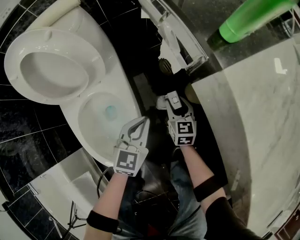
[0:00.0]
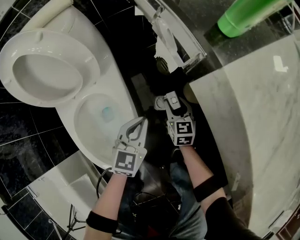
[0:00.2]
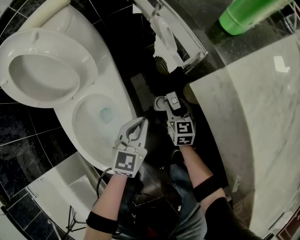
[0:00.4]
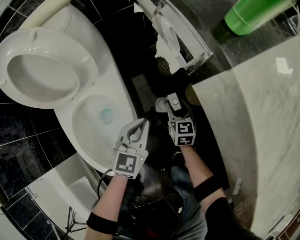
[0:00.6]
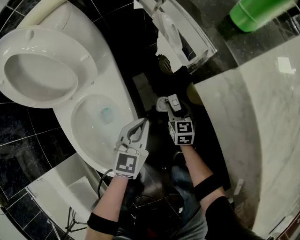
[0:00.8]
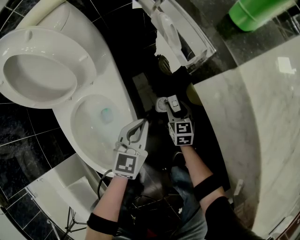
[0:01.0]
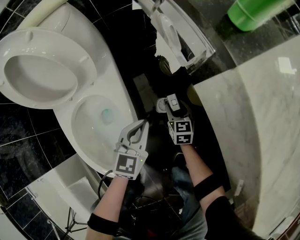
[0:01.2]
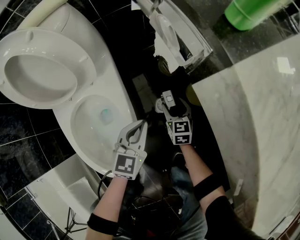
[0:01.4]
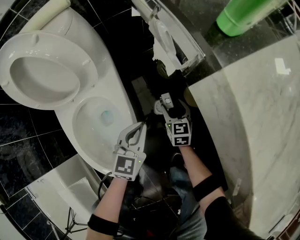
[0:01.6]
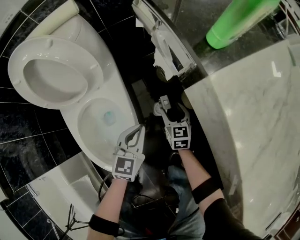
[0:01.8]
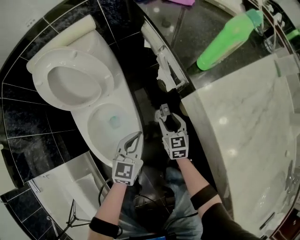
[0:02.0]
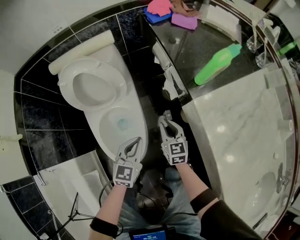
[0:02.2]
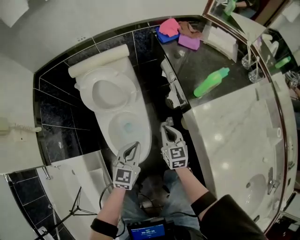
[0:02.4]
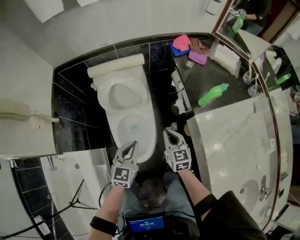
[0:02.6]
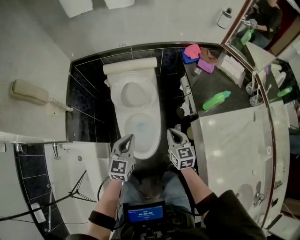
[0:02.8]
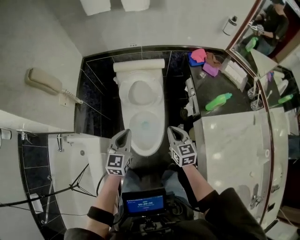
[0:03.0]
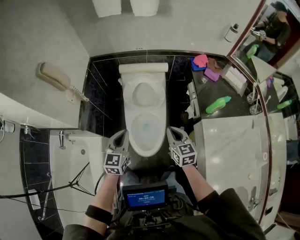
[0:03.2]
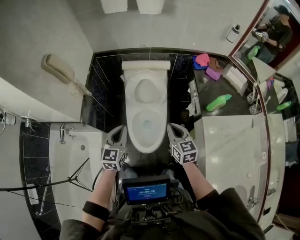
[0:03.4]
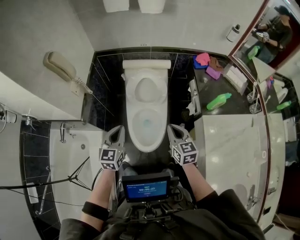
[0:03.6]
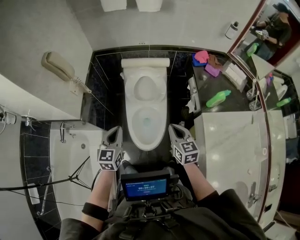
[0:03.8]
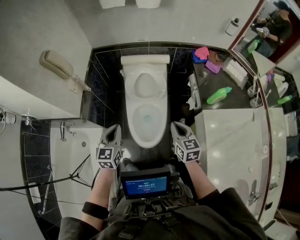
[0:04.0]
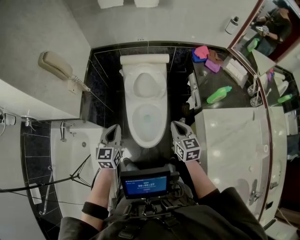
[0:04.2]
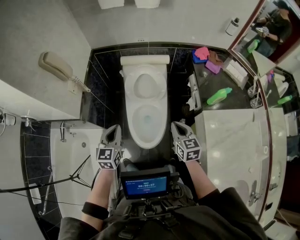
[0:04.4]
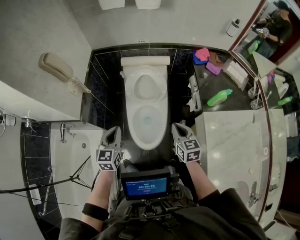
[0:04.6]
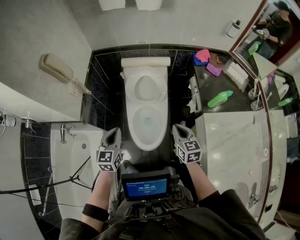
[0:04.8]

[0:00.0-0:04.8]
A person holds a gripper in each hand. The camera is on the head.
0:00.0 to 0:01.6: The right gripper heads downward, covering some 5 cm.
0:01.6 to 0:03.2: The grippers both shift upward by about 60 cm. The right gripper rotates some 30 degrees, and closes. The left gripper rotates roughly 30 degrees.
0:03.2 to 0:04.8: The left gripper goes some 5 cm to the left.

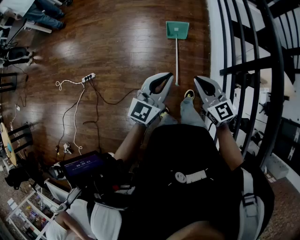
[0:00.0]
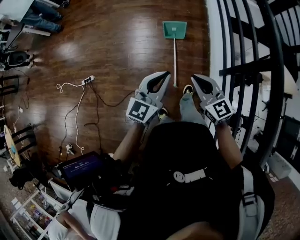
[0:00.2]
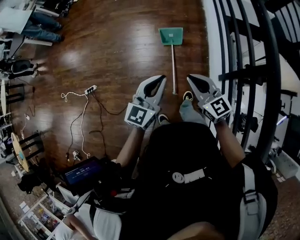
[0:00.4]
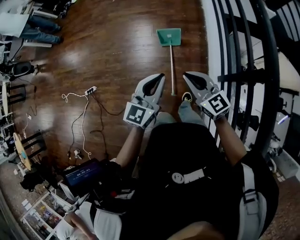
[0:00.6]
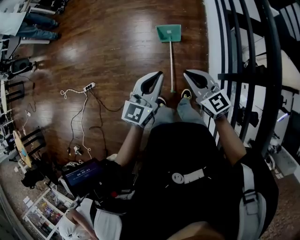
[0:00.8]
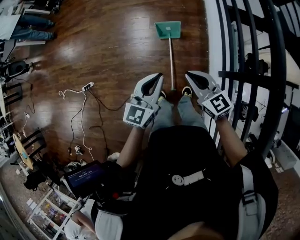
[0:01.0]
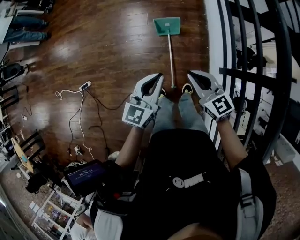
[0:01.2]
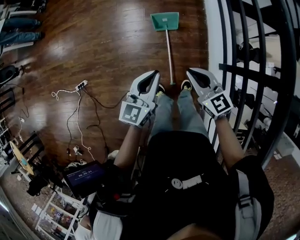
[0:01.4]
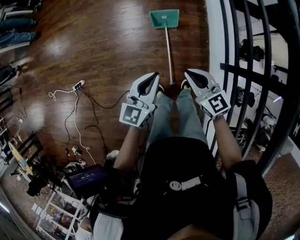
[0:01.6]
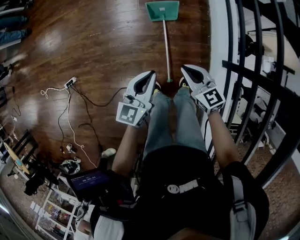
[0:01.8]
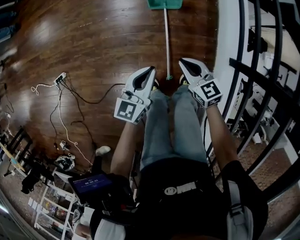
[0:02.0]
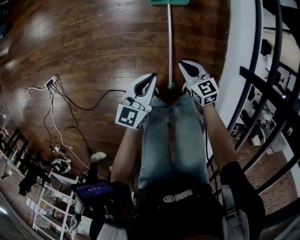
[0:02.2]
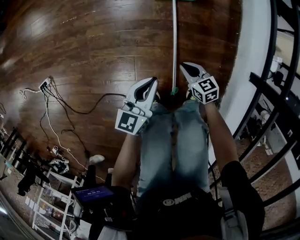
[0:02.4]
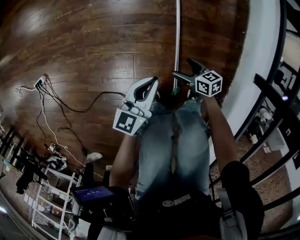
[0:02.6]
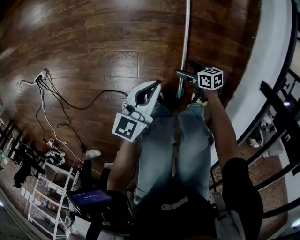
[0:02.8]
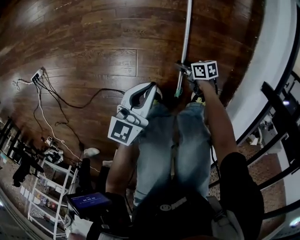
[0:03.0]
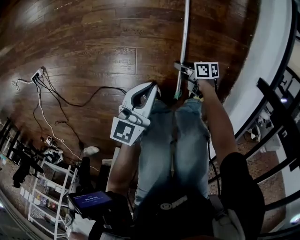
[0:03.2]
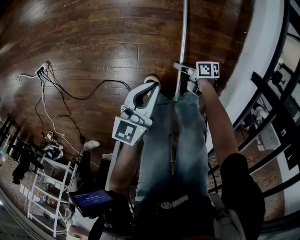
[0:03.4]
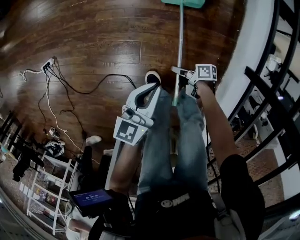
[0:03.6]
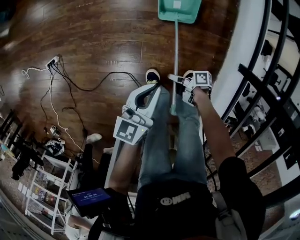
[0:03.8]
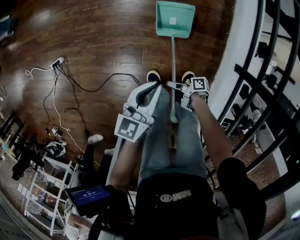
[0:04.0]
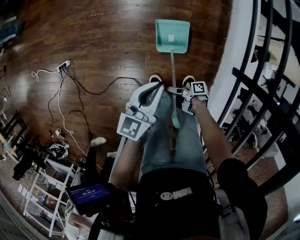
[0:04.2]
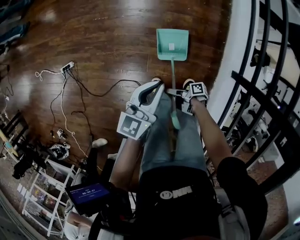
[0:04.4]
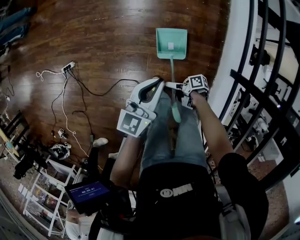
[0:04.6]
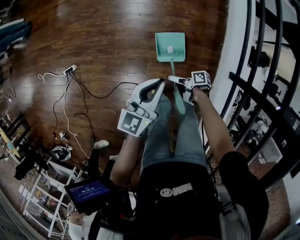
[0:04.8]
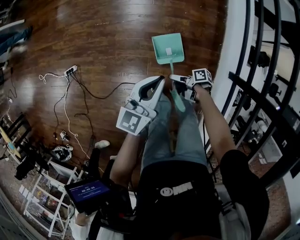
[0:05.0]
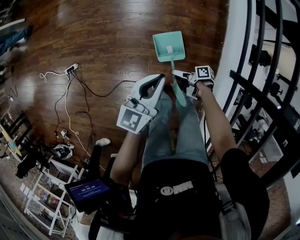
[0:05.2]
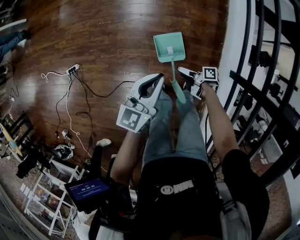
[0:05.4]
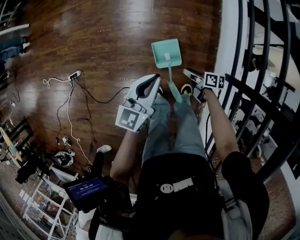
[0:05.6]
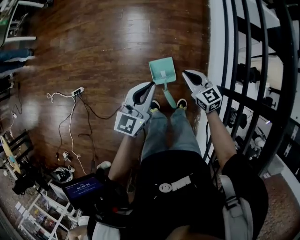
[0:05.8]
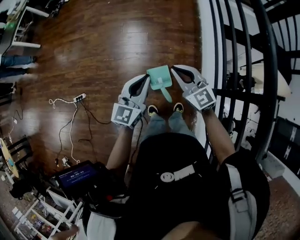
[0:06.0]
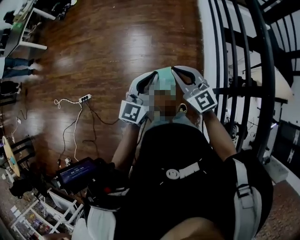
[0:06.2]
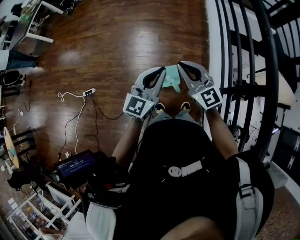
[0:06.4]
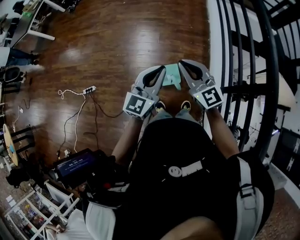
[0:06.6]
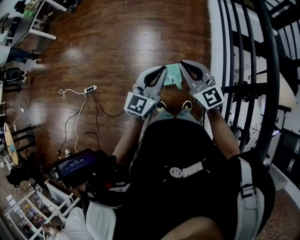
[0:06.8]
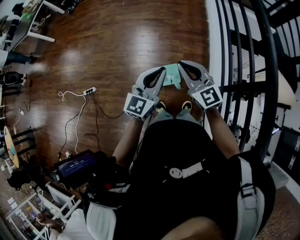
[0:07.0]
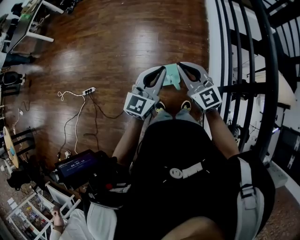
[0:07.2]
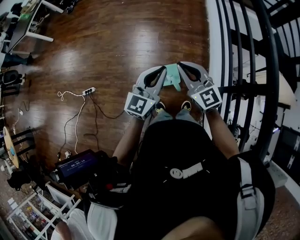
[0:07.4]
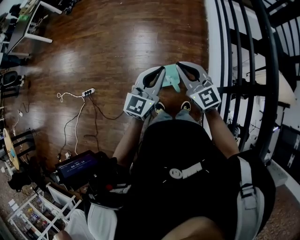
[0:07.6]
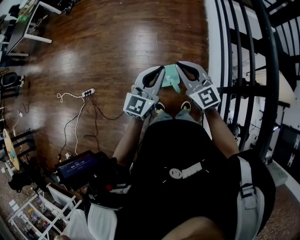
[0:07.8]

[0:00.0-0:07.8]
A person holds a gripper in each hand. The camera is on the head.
0:00.0 to 0:01.6: Both grippers move forward and downward, about 30 cm.
0:01.6 to 0:03.2: The left gripper moves downward, about 40 cm. Meanwhile the right gripper goes about 70 cm downward, rotates around the line of its fingers by about 60 degrees, clockwise from behind, and opens and closes again.
0:03.2 to 0:04.6: The grippers both shift upward by about 30 cm. The right gripper rotates some 30 degrees, and opens up.
0:04.6 to 0:06.2: The right gripper moves upward, some 60 cm, rotates around the line of its fingers by about 110 degrees, counterclockwise from behind, and closes, while the left gripper travels upward by approximately 35 cm, and rotates about 30 degrees.
0:06.2 to 0:07.8: The left gripper moves approximately 5 cm.

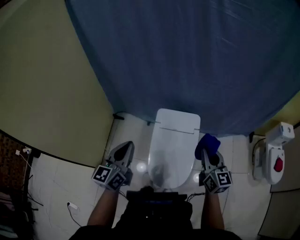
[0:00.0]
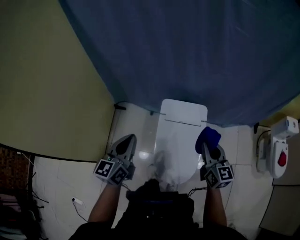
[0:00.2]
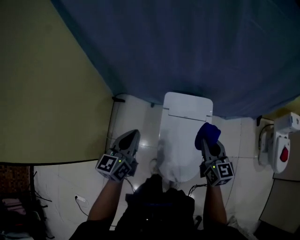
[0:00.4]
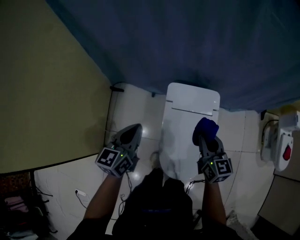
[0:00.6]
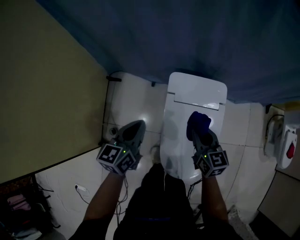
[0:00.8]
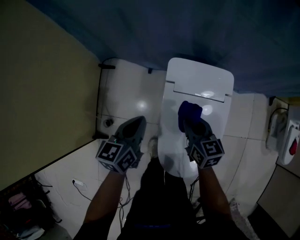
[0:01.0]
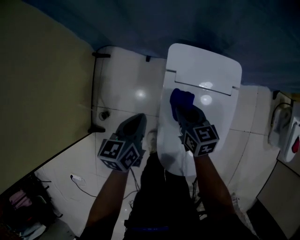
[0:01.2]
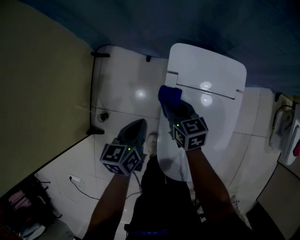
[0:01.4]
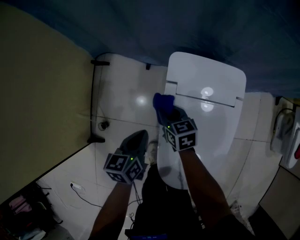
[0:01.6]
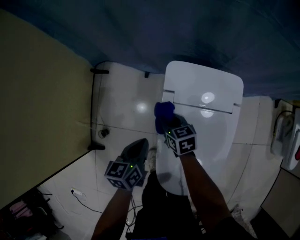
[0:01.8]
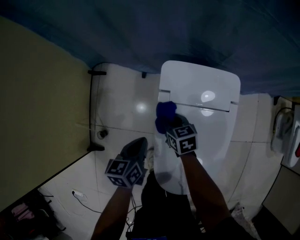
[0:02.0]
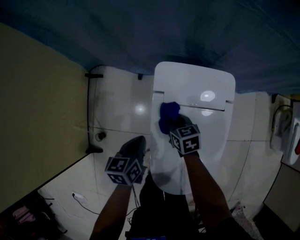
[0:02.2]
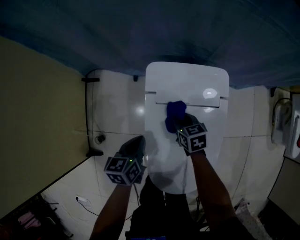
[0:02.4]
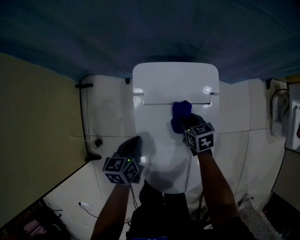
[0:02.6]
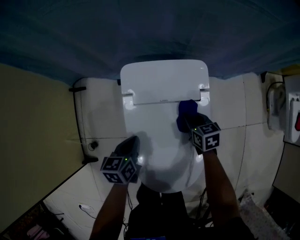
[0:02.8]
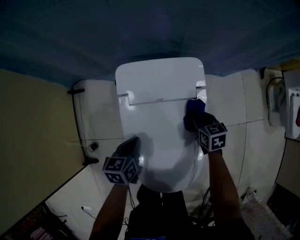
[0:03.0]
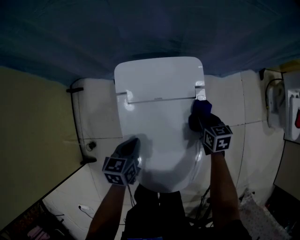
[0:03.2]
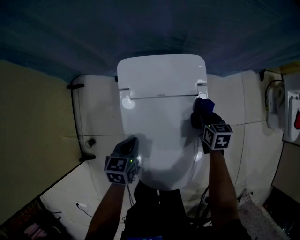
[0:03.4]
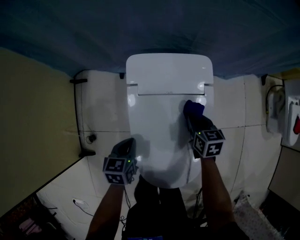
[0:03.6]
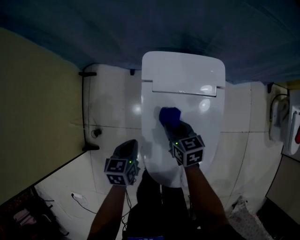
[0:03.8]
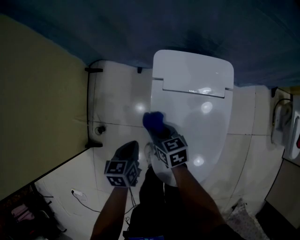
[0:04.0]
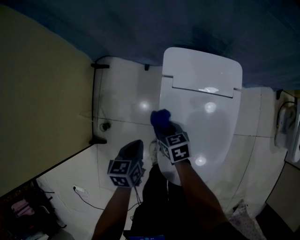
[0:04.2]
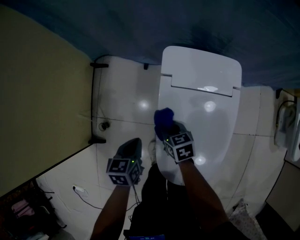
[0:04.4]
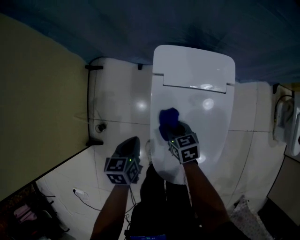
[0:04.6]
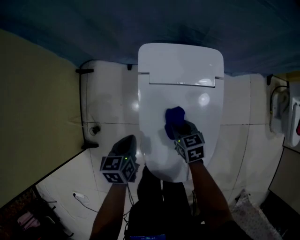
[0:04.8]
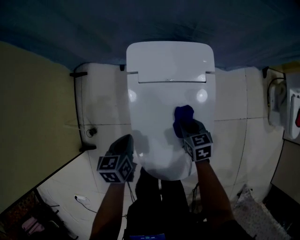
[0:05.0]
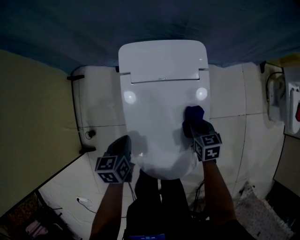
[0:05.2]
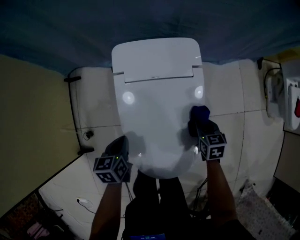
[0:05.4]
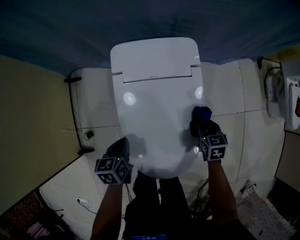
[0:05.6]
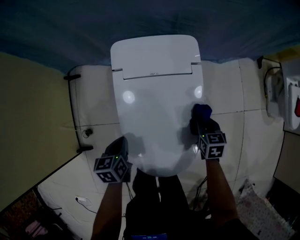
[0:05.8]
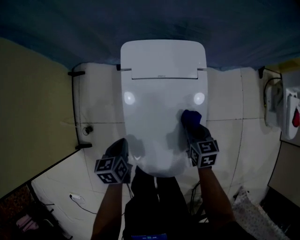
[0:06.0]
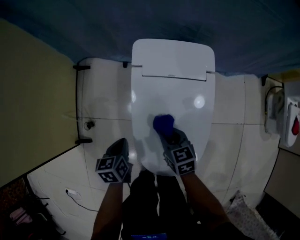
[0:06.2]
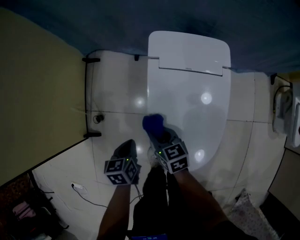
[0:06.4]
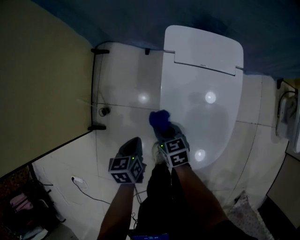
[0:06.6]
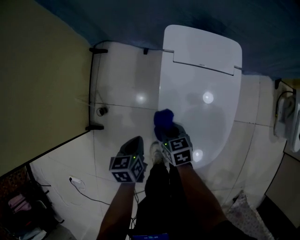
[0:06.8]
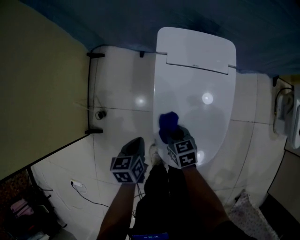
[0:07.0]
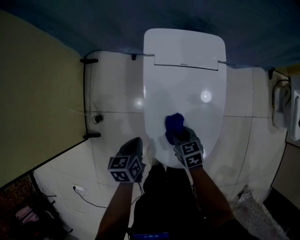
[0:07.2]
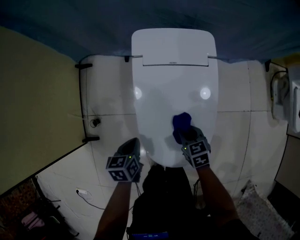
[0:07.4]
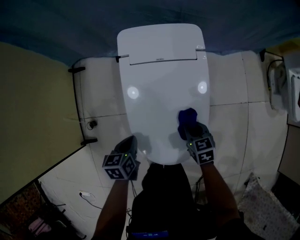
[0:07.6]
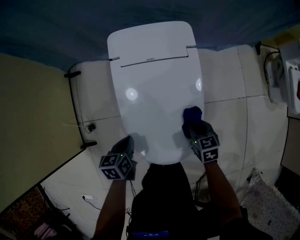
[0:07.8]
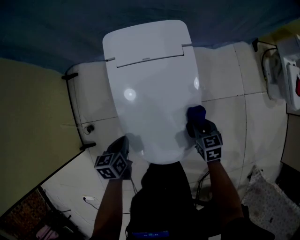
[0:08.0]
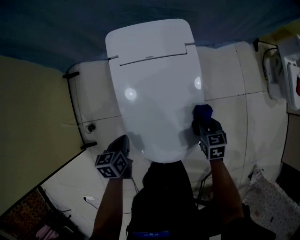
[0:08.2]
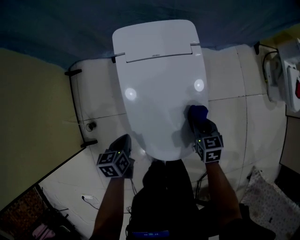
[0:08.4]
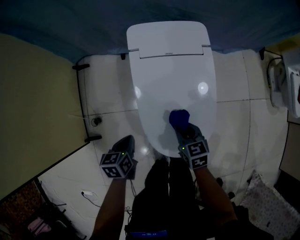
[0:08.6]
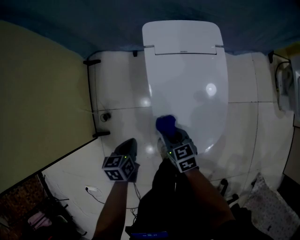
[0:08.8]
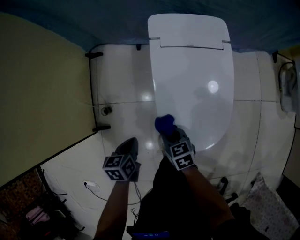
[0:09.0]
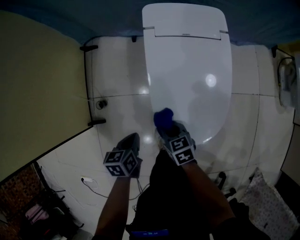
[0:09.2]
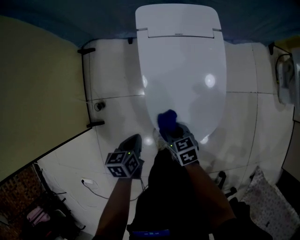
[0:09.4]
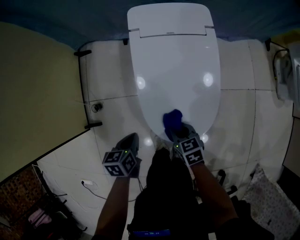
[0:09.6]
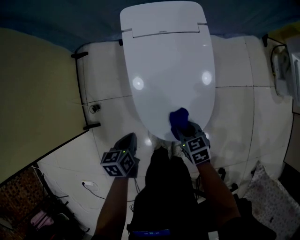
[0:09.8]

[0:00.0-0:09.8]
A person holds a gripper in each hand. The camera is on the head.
0:00.0 to 0:01.4: The right gripper heads downward, to the left and forward, covering approximately 60 cm, and swivels roughly 30 degrees; the left gripper moves downward and forward, approximately 50 cm, and points its fingers approximately 30 degrees further downward.
0:01.4 to 0:02.8: The left gripper shifts roughly 10 cm to the right; the right gripper heads to the right, covering approximately 25 cm.
0:02.8 to 0:04.2: The right gripper moves roughly 30 cm. Meanwhile the left gripper shifts by some 15 cm.
0:04.2 to 0:05.6: The left gripper shifts some 10 cm to the right. Meanwhile the right gripper travels to the right by about 35 cm, and changes its angle by approximately 30 degrees.
0:05.6 to 0:07.0: The right gripper is displaced to the left by approximately 30 cm, and rotates some 20 degrees. Meanwhile the left gripper goes roughly 10 cm to the left and backward.
0:07.0 to 0:08.4: The right gripper travels to the right by approximately 25 cm, and changes its angle by about 20 degrees.
0:08.4 to 0:09.8: The left gripper goes roughly 10 cm backward. Meanwhile the right gripper goes approximately 15 cm to the left and backward.

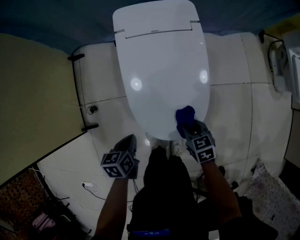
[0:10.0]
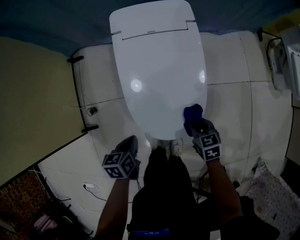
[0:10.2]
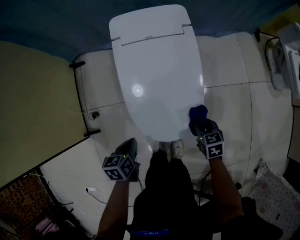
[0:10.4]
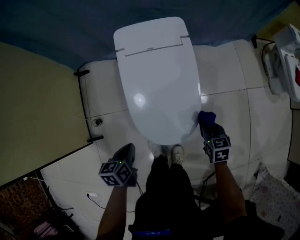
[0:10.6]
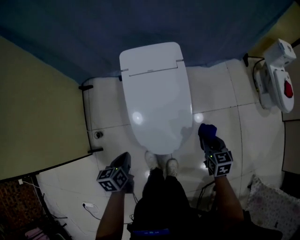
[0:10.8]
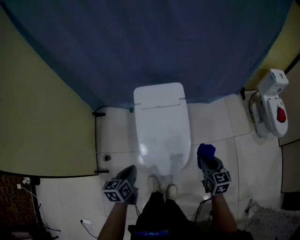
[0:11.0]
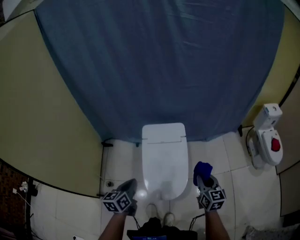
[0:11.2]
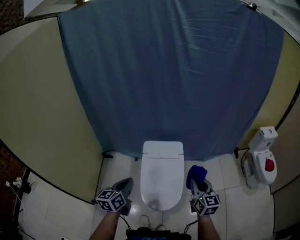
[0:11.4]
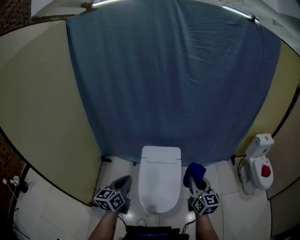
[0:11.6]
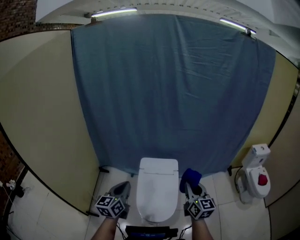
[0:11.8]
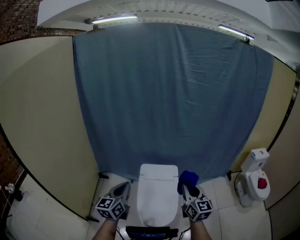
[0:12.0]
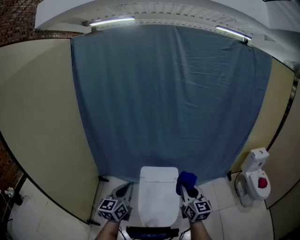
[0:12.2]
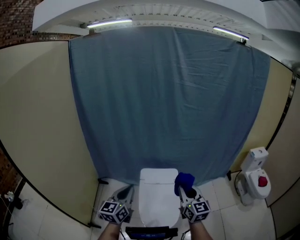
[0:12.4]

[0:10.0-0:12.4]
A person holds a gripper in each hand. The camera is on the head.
0:10.0 to 0:11.2: The two grippers go approximately 40 cm upward. The right gripper tilts its fingers approximately 30 degrees upward. The left gripper changes its angle by roughly 30 degrees.
0:11.2 to 0:12.4: The left gripper goes about 20 cm upward, and turns by approximately 30 degrees. The right gripper shifts roughly 25 cm upward and to the left, and swivels roughly 20 degrees.
